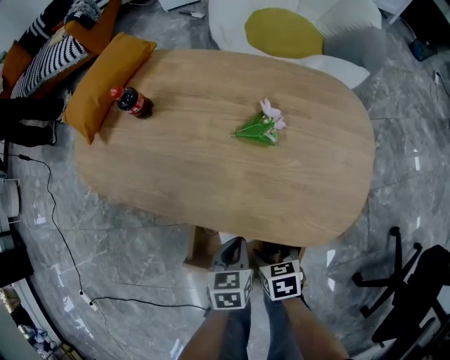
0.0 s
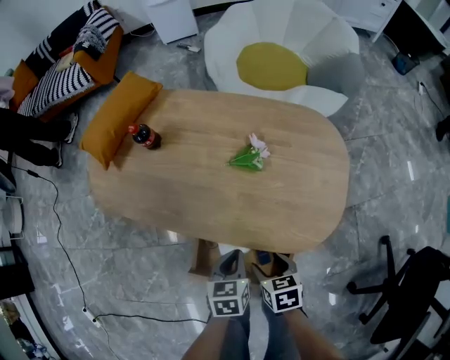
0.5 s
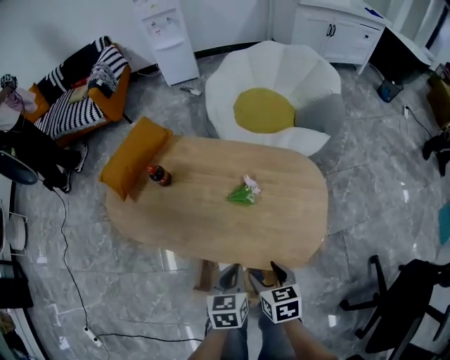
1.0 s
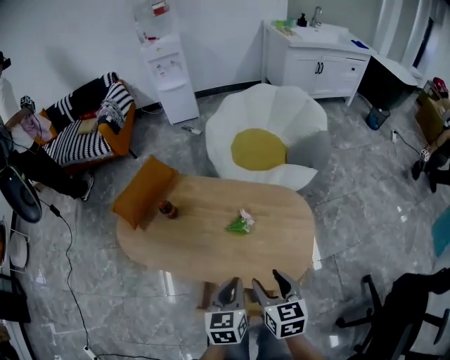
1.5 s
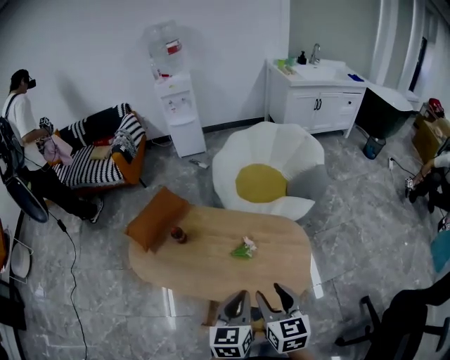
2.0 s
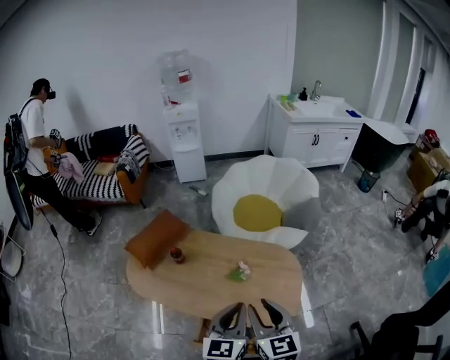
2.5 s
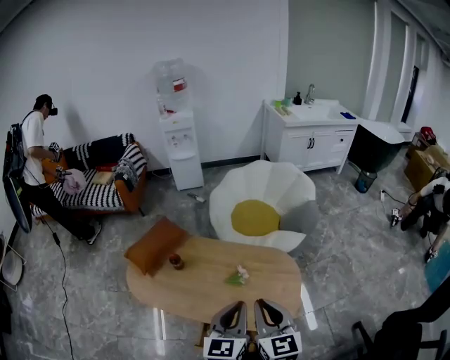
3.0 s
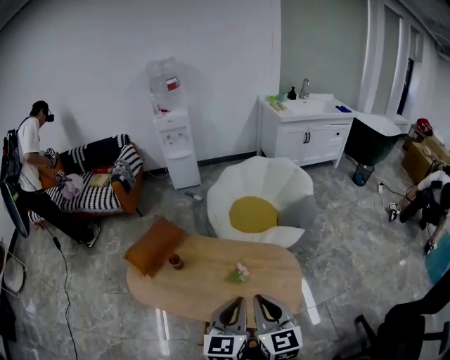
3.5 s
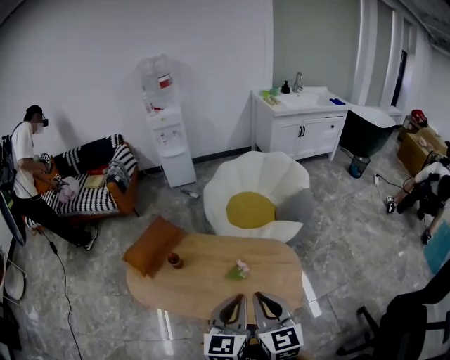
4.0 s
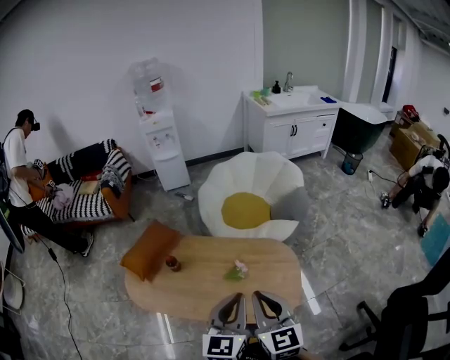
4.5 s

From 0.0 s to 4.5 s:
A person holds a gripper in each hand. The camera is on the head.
From 0.0 s to 2.0 s: Both grippers move upward, approximately 40 cm. The right gripper points its fingers roughly 40 degrees further upward; the left gripper angles its fingers upward, by about 30 degrees.
From 2.0 s to 4.5 s: Both grippers travel together upward, approximately 10 cm. The right gripper closes its fingers.

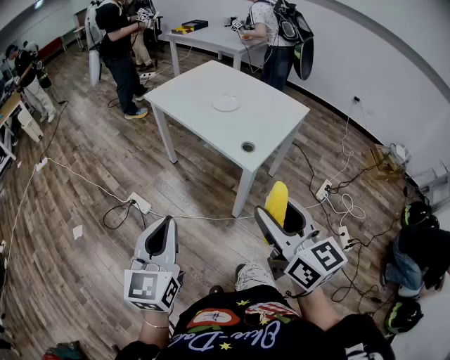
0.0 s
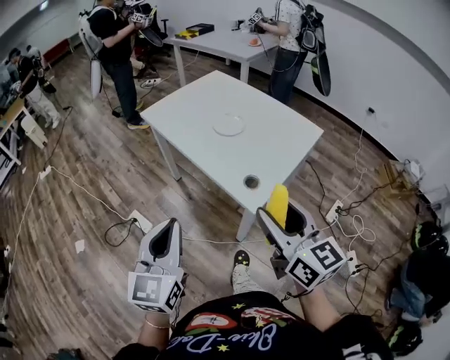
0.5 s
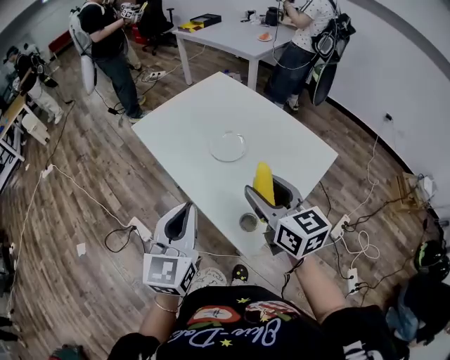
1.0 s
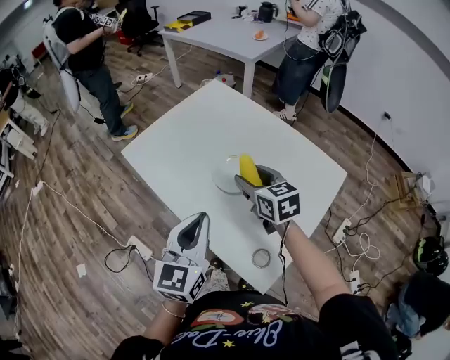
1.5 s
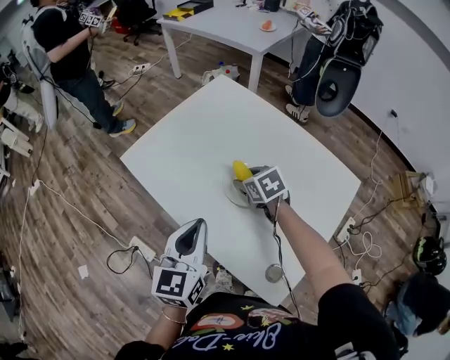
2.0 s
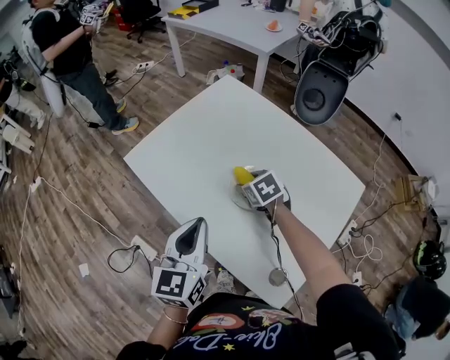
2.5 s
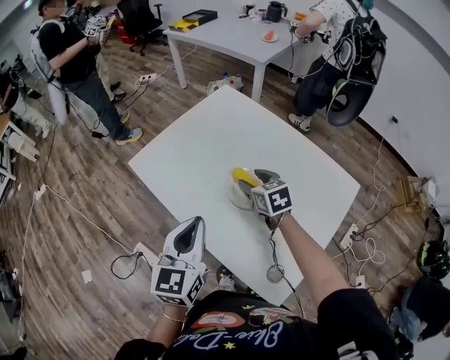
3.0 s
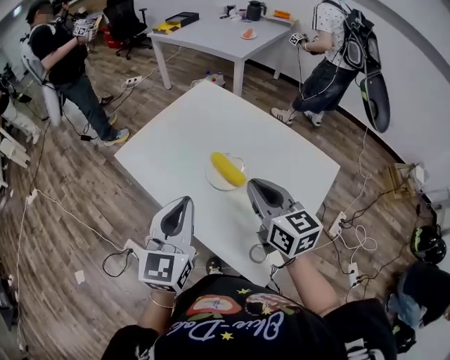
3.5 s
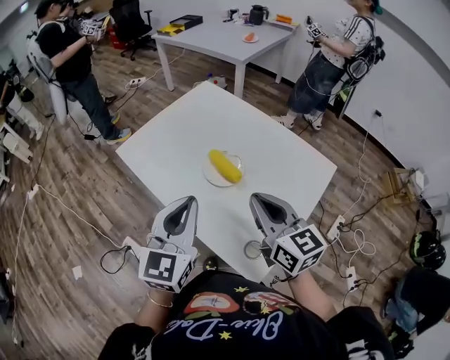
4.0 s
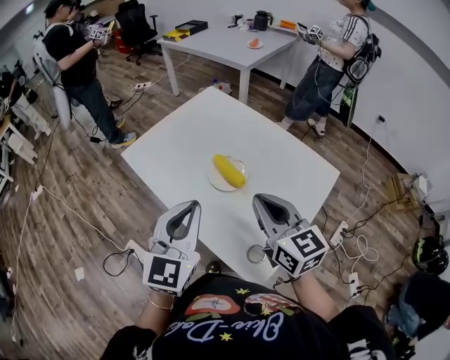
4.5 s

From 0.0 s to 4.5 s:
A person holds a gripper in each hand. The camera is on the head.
From 0.0 s to 2.0 s: Both grippers are carried forward, roughly 60 cm. The right gripper points its fingers some 50 degrees further downward.
From 2.0 s to 4.5 s: The left gripper is displaced upward and backward by approximately 10 cm, and rotates roughly 20 degrees. Meanwhile the right gripper shifts roughly 30 cm backward and upward, tips its fingers upward by some 40 degrees, and closes its fingers.

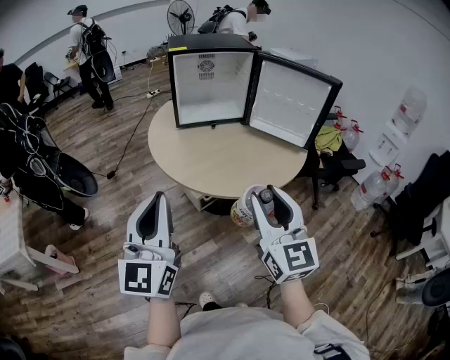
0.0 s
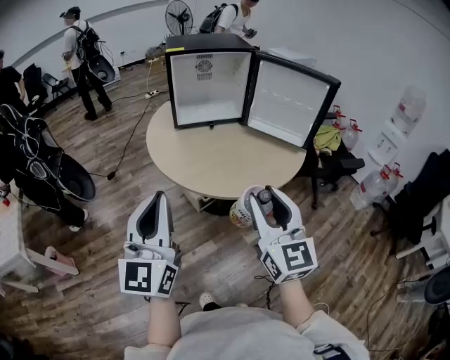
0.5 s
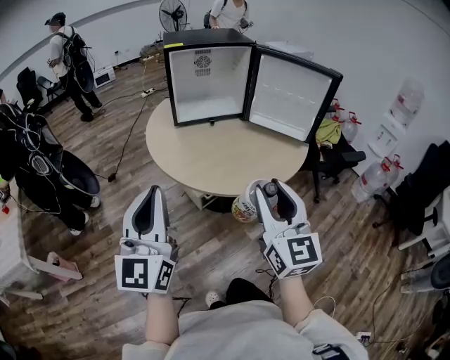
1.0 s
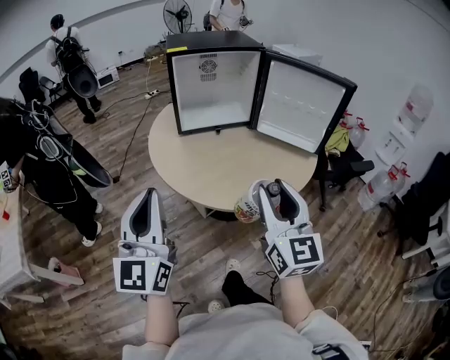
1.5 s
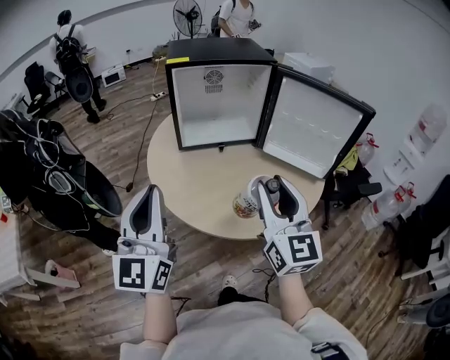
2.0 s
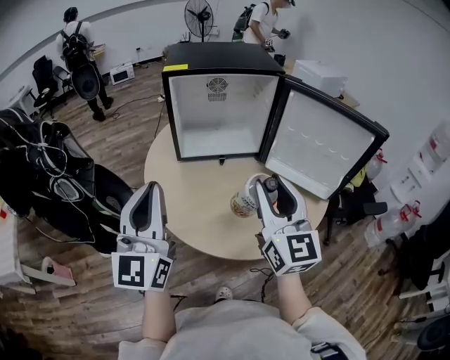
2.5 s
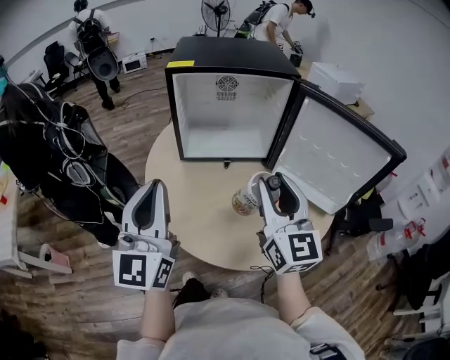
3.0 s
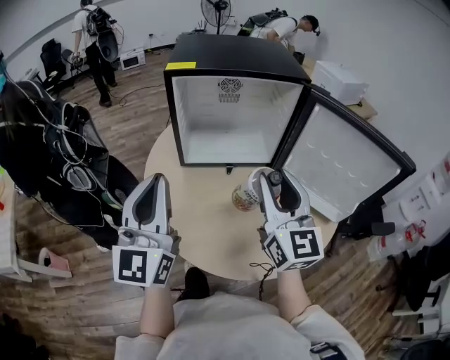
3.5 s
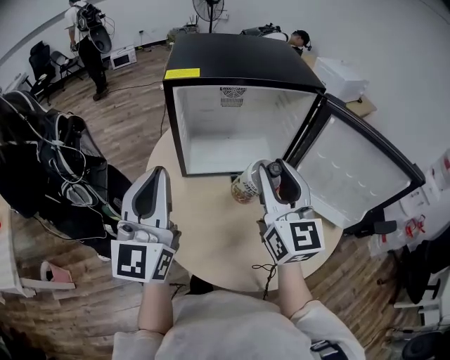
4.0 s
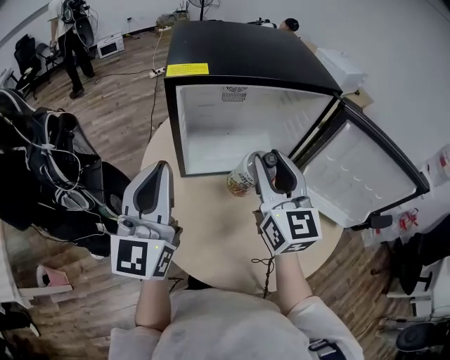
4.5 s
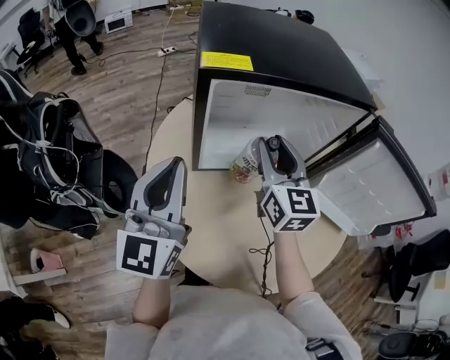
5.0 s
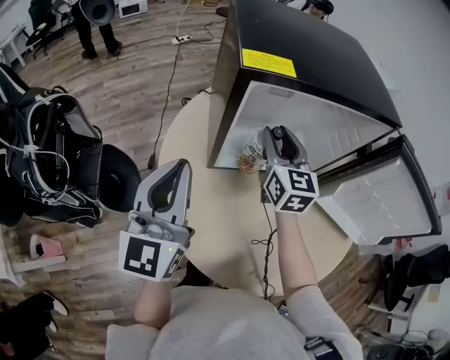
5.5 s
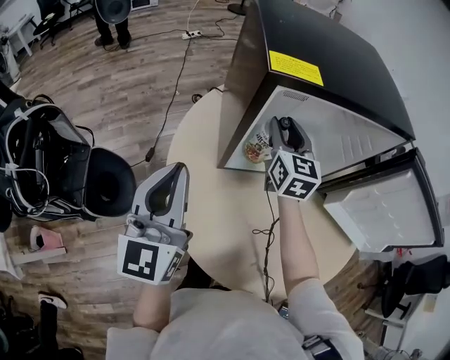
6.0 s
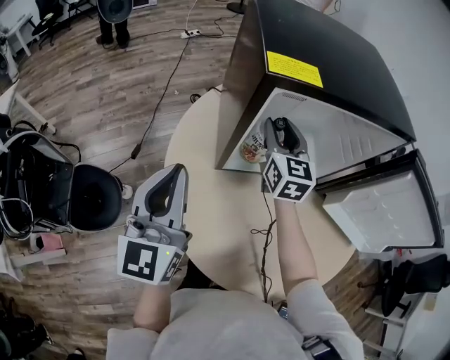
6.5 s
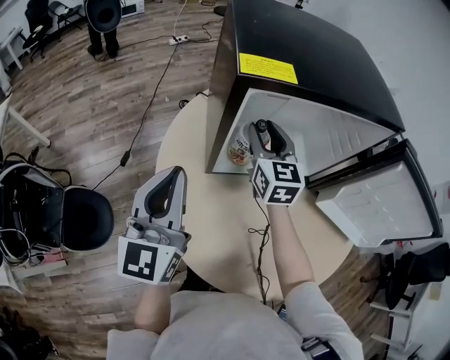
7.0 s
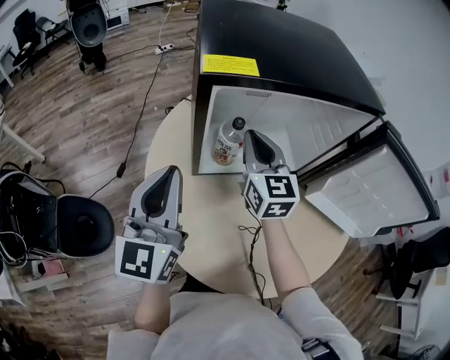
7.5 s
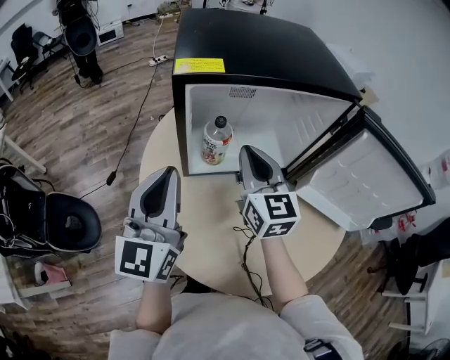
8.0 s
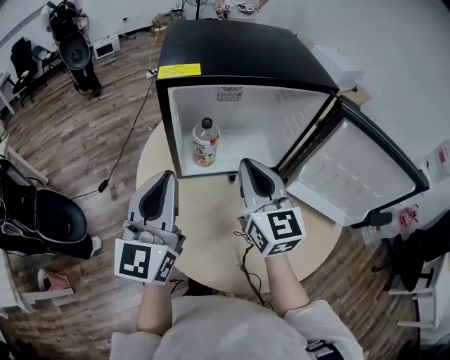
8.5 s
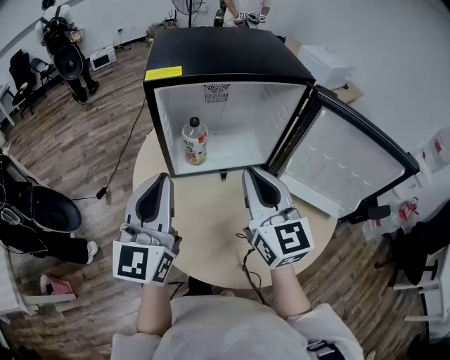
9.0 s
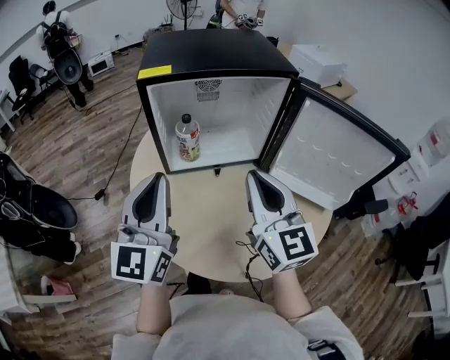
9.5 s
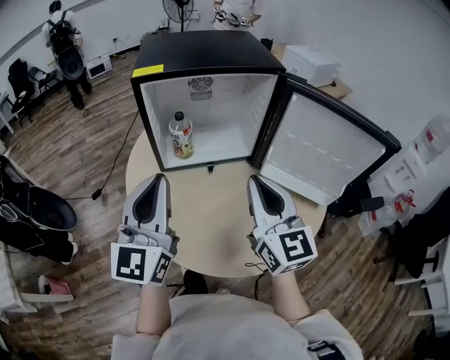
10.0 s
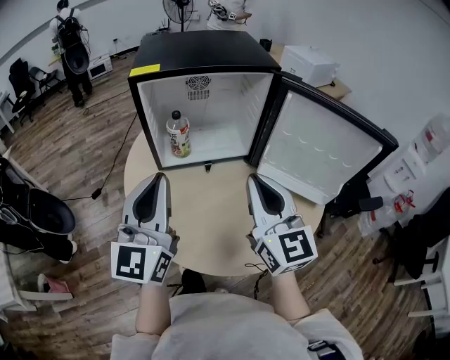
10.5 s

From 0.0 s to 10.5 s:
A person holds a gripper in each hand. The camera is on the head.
From 0.0 s to 2.0 s: The two grippers go some 20 cm forward.
From 2.0 s to 4.0 s: Both grippers move forward, about 25 cm.
From 4.0 s to 6.5 s: The right gripper goes some 35 cm forward, downward and to the left. Meanwhile the left gripper is displaced to the left, forward and downward by some 20 cm.
From 6.5 s to 8.5 s: The left gripper heads to the right, upward and backward, covering about 15 cm. Meanwhile the right gripper moves backward, upward and to the right, approximately 20 cm, and closes.
From 8.5 s to 10.5 s: The two grippers go roughly 15 cm backward and to the right.

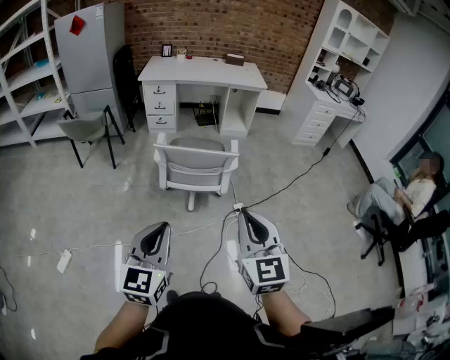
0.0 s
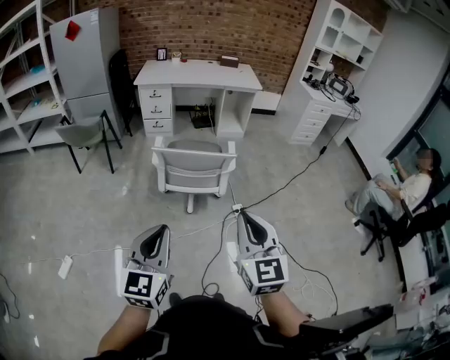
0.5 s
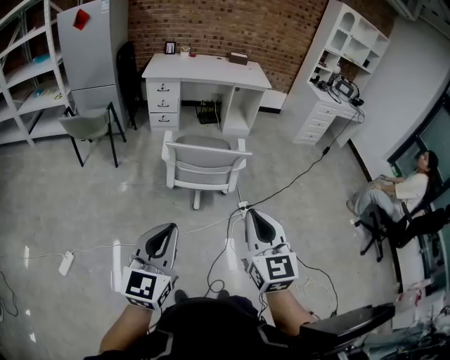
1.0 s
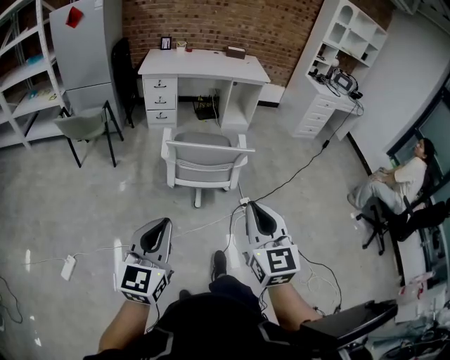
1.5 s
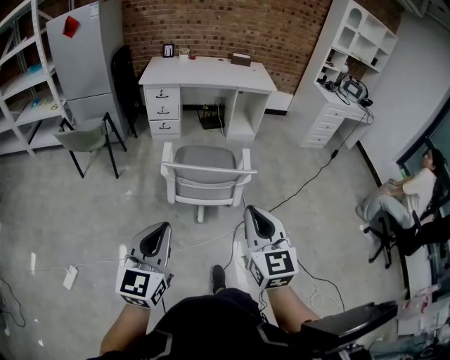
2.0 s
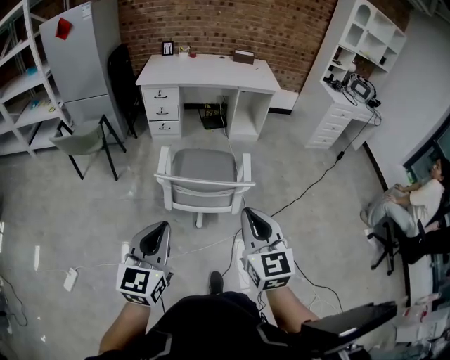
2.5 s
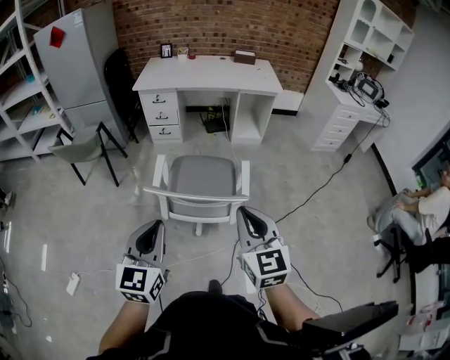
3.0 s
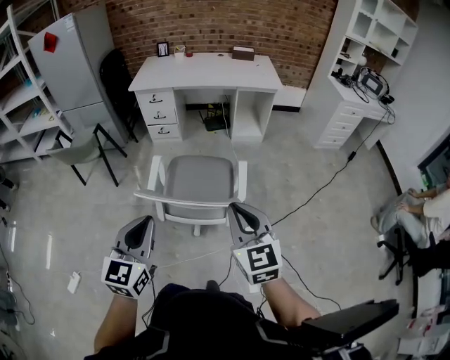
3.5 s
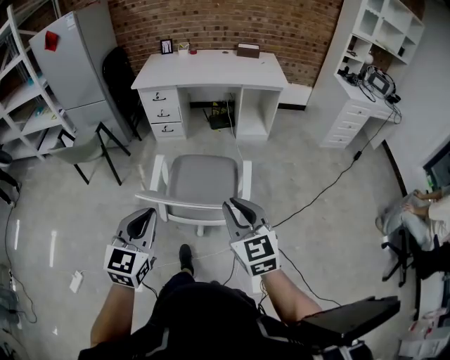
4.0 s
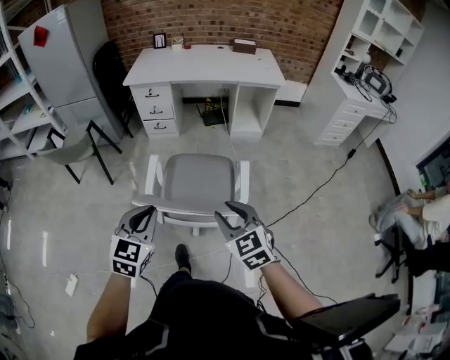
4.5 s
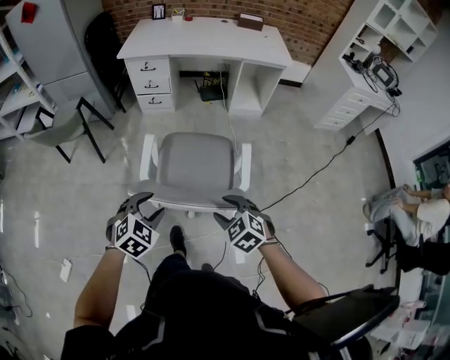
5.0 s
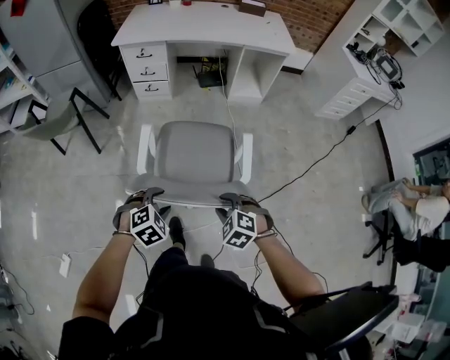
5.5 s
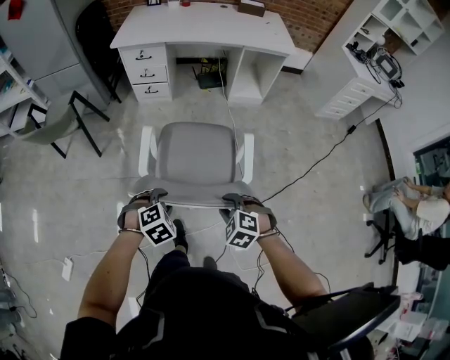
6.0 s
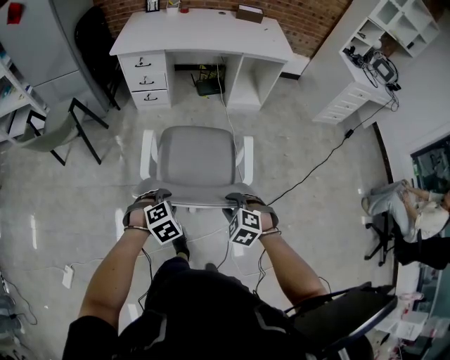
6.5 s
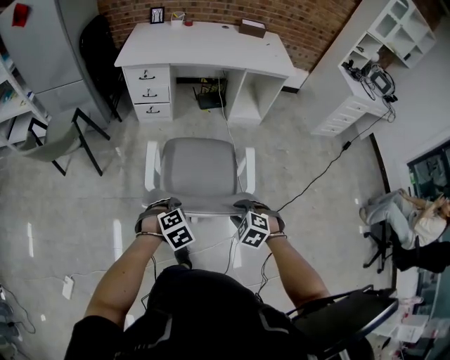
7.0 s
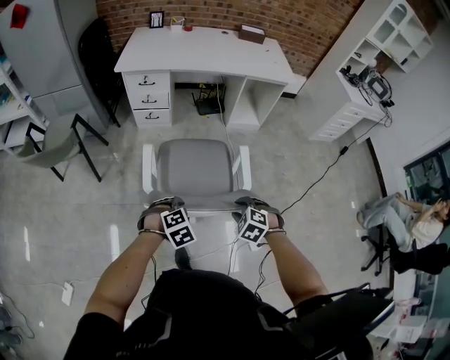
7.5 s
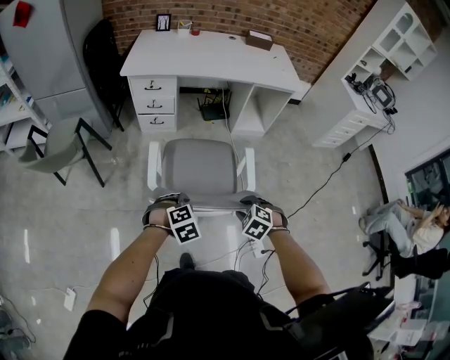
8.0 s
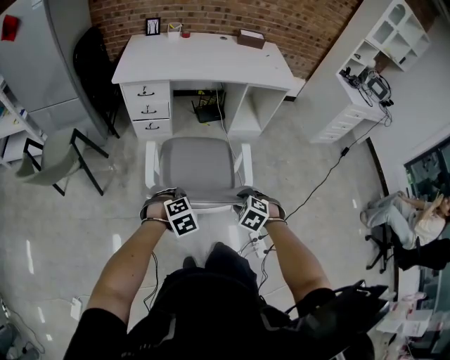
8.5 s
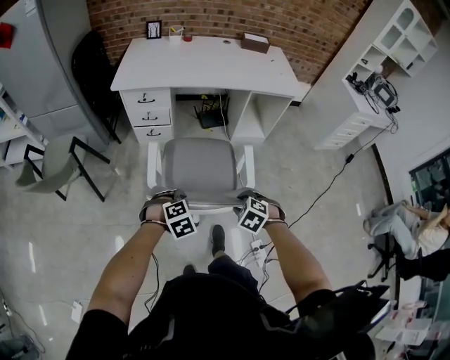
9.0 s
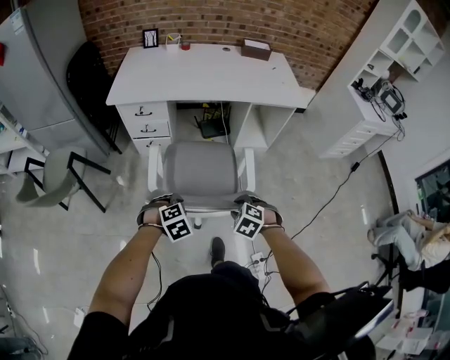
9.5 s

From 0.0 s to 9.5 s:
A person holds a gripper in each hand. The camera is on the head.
From 0.0 s to 2.0 s: Both grippers travel together forward and to the left, roughly 15 cm.
From 2.0 s to 4.0 s: The right gripper travels forward by approximately 25 cm, while the left gripper shifts roughly 25 cm forward and to the right.
From 4.0 s to 5.5 s: The left gripper travels downward and forward by roughly 25 cm, angles its fingers downward, by roughly 50 degrees, and opens up, while the right gripper shifts approximately 25 cm downward, and points its fingers about 40 degrees further downward.
From 5.5 s to 7.5 s: Both grippers travel together forward, some 10 cm.
From 7.5 s to 9.5 s: Both grippers travel together forward, approximately 25 cm.
